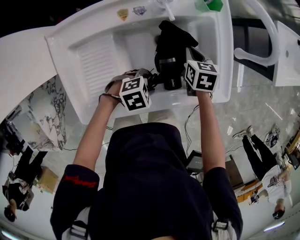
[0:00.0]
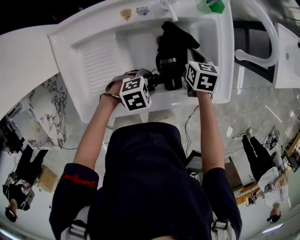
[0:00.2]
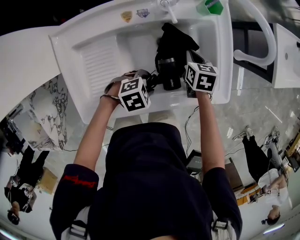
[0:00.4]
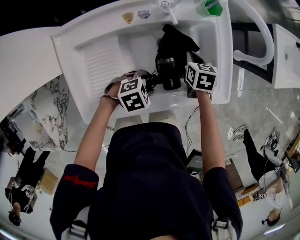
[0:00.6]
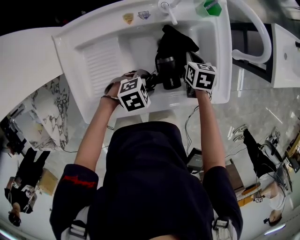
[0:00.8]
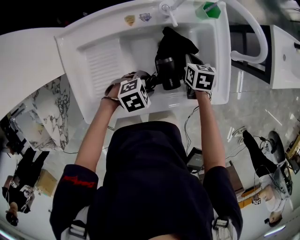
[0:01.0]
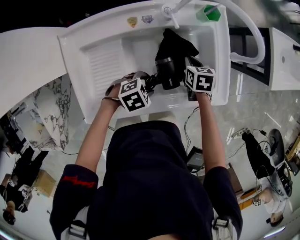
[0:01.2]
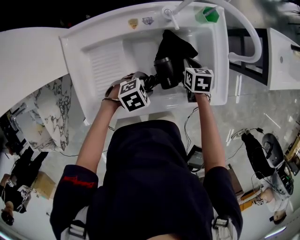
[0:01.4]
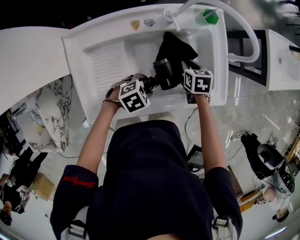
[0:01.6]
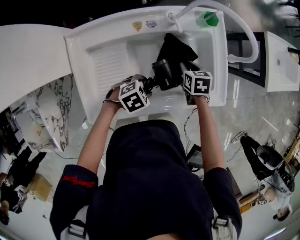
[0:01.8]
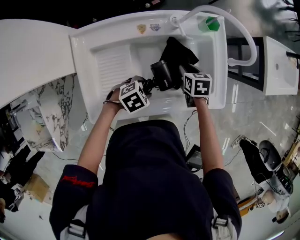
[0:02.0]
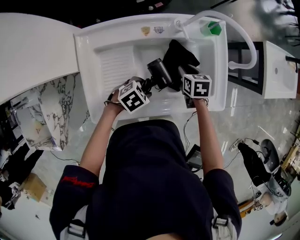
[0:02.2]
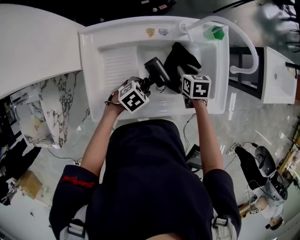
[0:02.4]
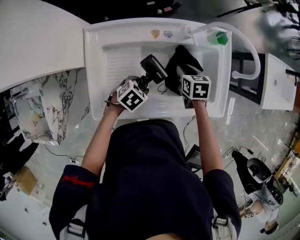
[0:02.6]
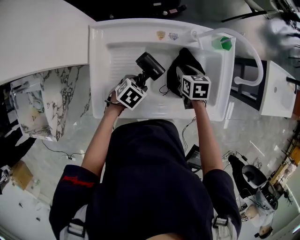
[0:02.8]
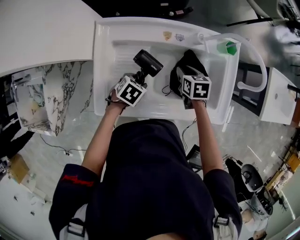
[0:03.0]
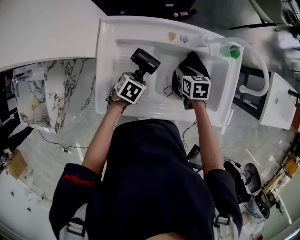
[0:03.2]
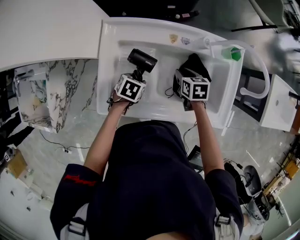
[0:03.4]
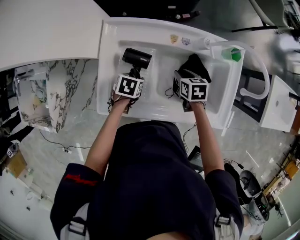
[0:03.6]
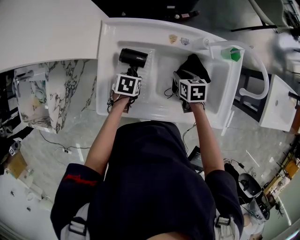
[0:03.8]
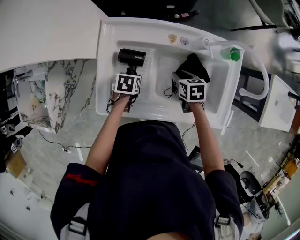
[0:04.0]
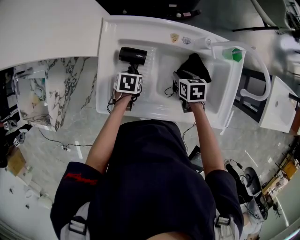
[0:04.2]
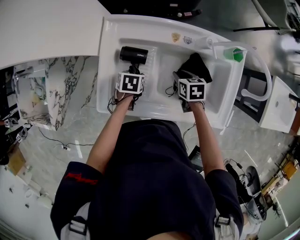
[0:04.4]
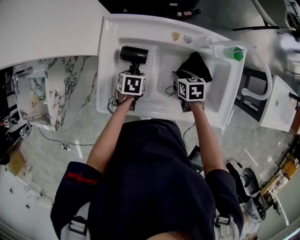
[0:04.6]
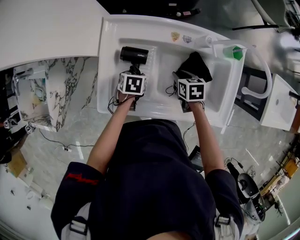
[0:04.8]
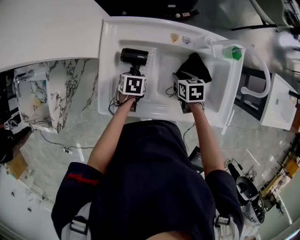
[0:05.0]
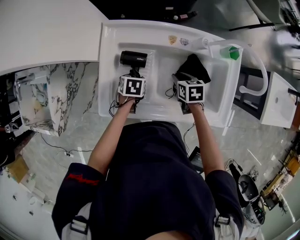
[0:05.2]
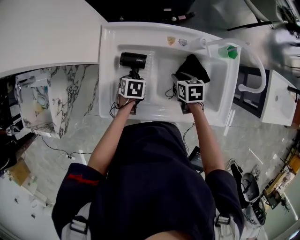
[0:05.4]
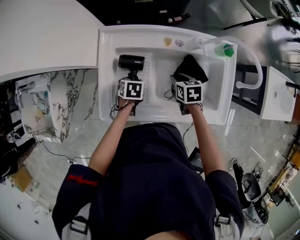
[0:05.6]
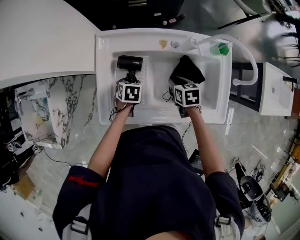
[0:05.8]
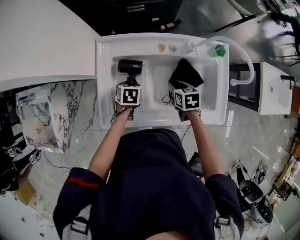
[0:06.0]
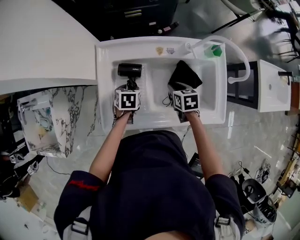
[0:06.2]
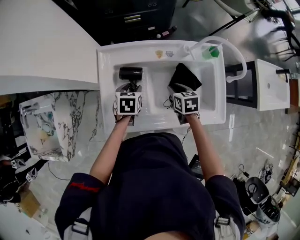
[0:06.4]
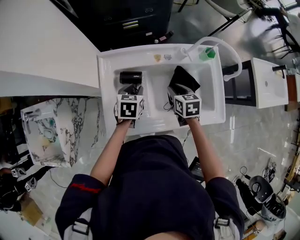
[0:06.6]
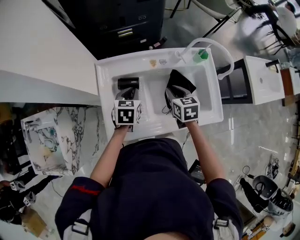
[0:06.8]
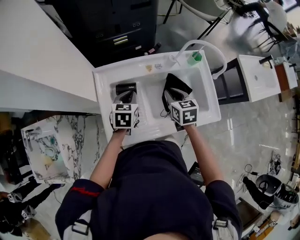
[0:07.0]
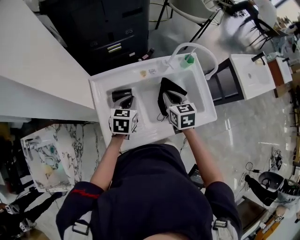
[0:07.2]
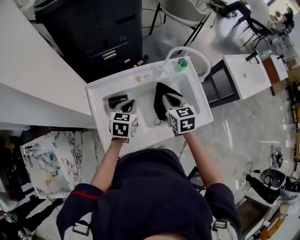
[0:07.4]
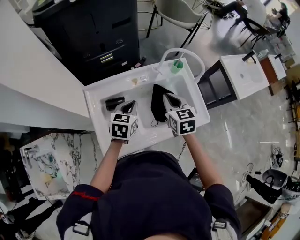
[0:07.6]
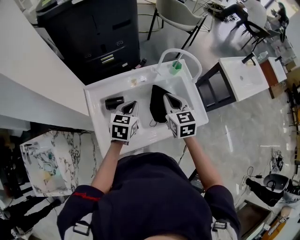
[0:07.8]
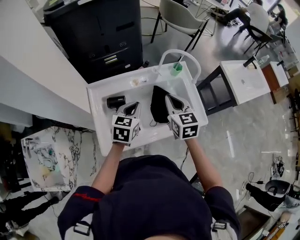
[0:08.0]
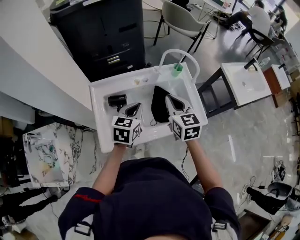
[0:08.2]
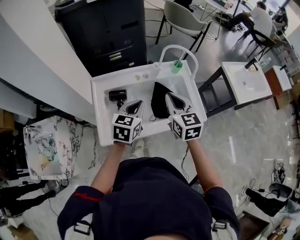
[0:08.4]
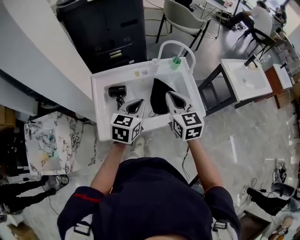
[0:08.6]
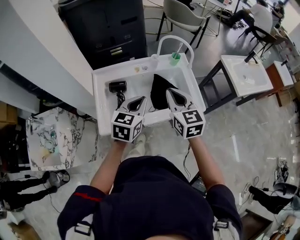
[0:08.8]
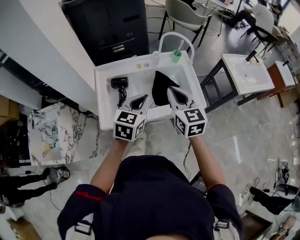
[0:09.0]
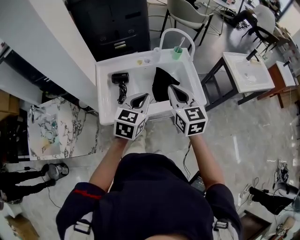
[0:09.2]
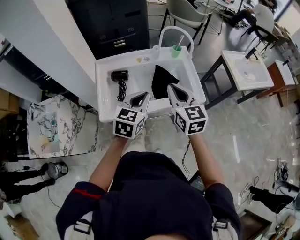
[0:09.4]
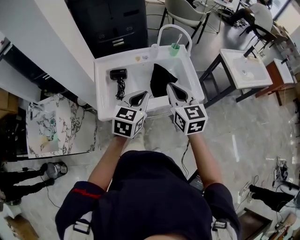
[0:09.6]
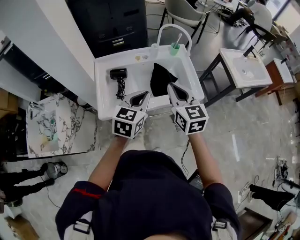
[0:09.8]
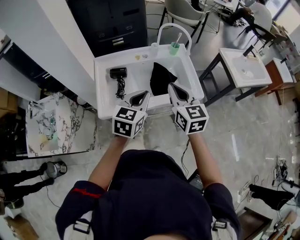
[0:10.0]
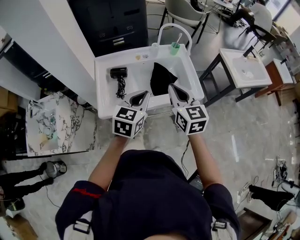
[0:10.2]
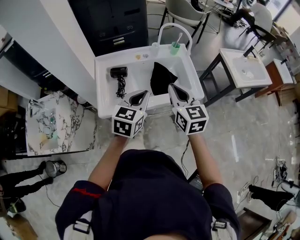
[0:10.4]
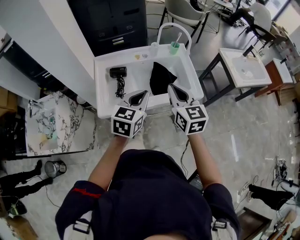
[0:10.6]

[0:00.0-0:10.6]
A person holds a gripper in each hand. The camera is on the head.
0:00.0 to 0:01.6: The left gripper ends up approximately 5 cm from where it was.
0:01.6 to 0:03.0: The left gripper changes place by some 10 cm, and turns by about 40 degrees. The right gripper moves approximately 10 cm.
0:03.0 to 0:04.6: The left gripper moves approximately 5 cm, and changes its angle by roughly 30 degrees. The right gripper ends up some 5 cm from where it was.
0:04.6 to 0:06.0: The grippers move only a little.
0:06.0 to 0:07.6: The left gripper heads upward and to the right, covering about 20 cm, tilts its fingers approximately 40 degrees upward, and closes up. The right gripper goes approximately 20 cm upward, rotates approximately 40 degrees, and closes its fingers.
0:07.6 to 0:09.0: The left gripper goes about 20 cm backward, upward and to the right. Meanwhile the right gripper moves backward and upward, some 20 cm.
0:09.0 to 0:10.6: The two grippers go about 5 cm backward.

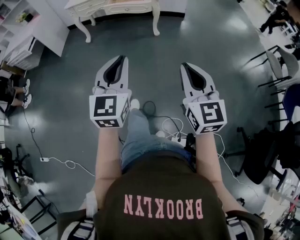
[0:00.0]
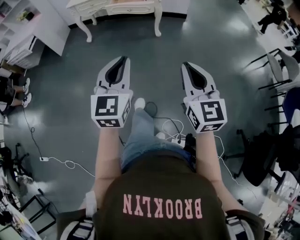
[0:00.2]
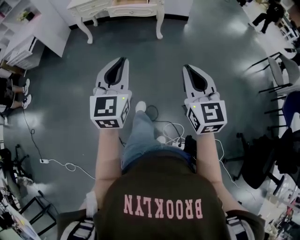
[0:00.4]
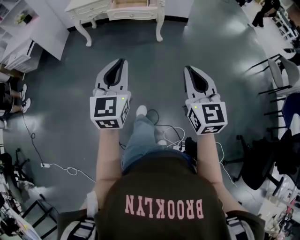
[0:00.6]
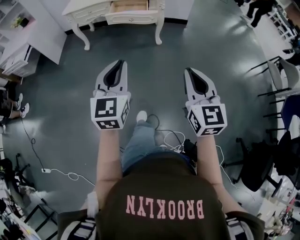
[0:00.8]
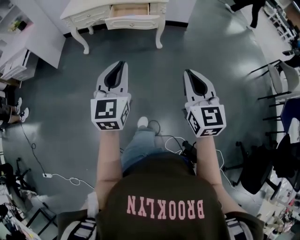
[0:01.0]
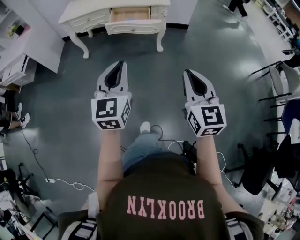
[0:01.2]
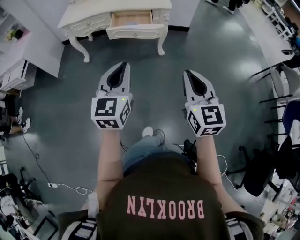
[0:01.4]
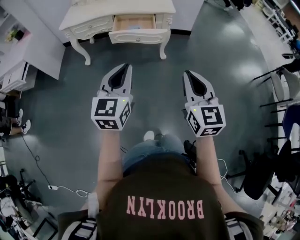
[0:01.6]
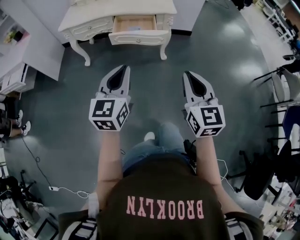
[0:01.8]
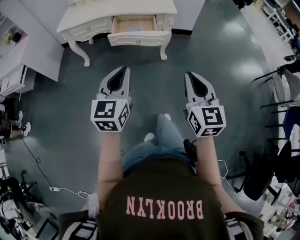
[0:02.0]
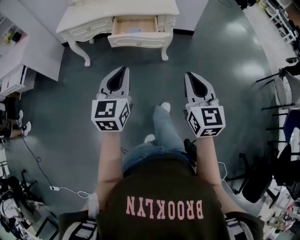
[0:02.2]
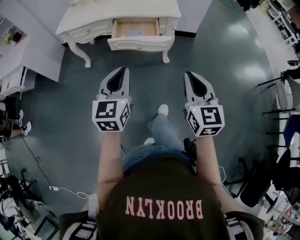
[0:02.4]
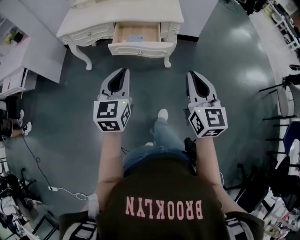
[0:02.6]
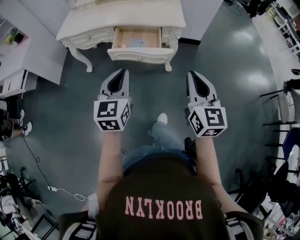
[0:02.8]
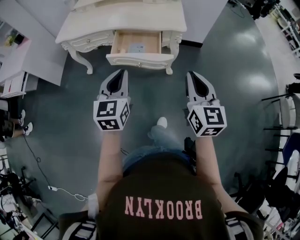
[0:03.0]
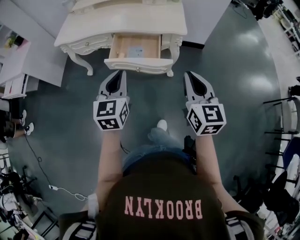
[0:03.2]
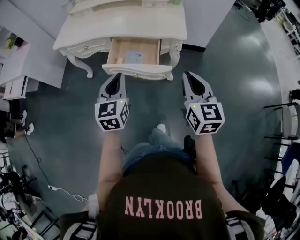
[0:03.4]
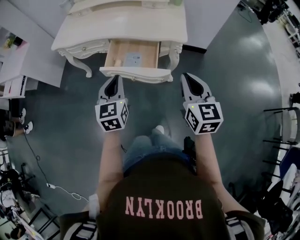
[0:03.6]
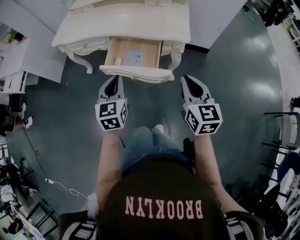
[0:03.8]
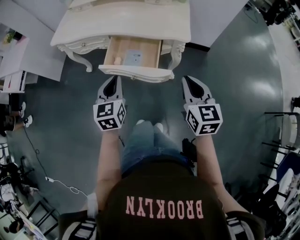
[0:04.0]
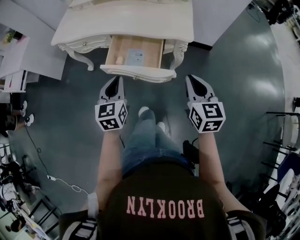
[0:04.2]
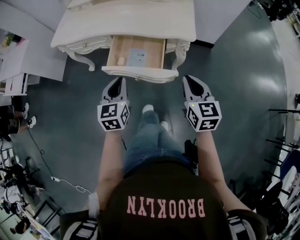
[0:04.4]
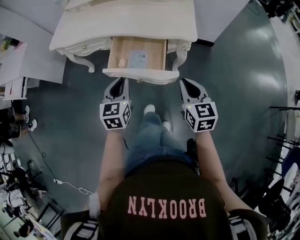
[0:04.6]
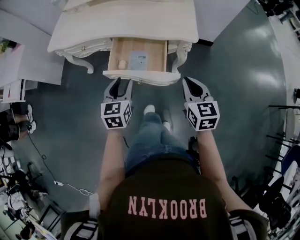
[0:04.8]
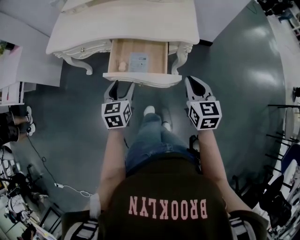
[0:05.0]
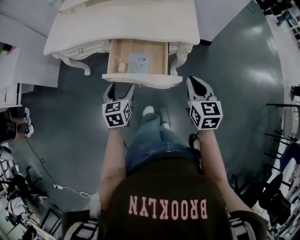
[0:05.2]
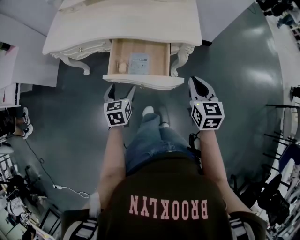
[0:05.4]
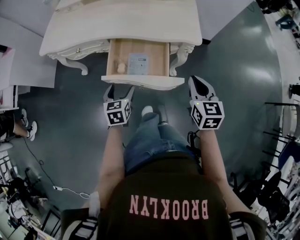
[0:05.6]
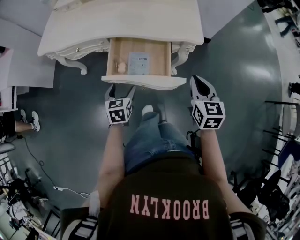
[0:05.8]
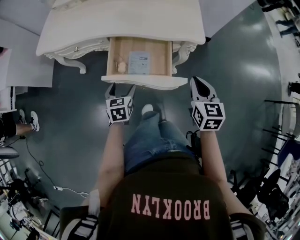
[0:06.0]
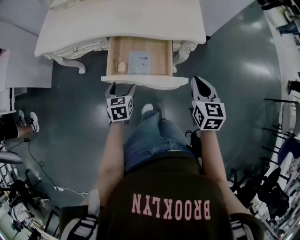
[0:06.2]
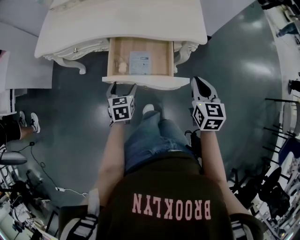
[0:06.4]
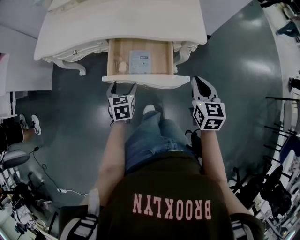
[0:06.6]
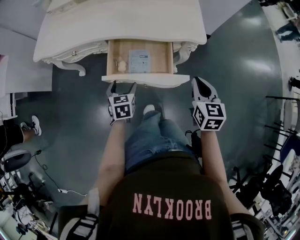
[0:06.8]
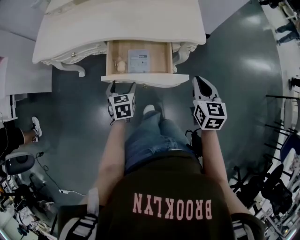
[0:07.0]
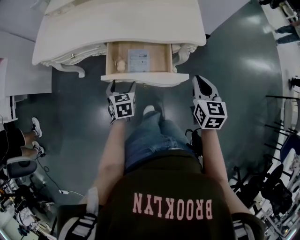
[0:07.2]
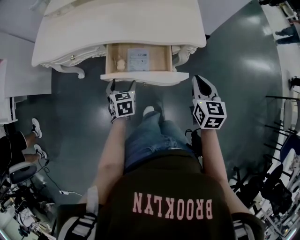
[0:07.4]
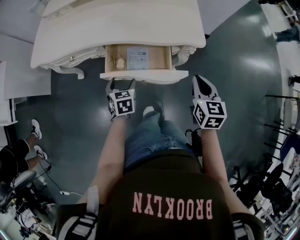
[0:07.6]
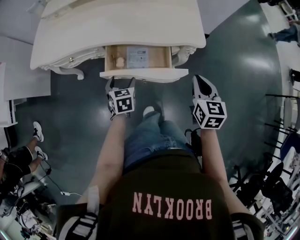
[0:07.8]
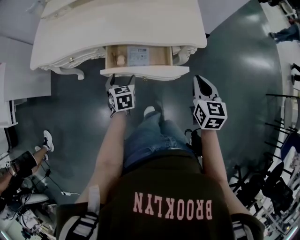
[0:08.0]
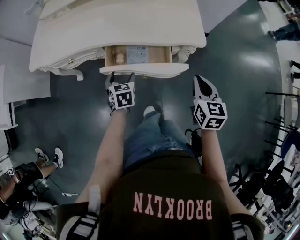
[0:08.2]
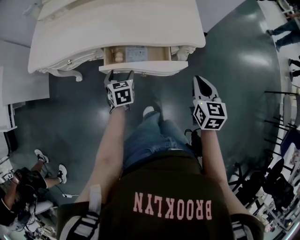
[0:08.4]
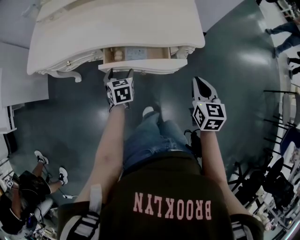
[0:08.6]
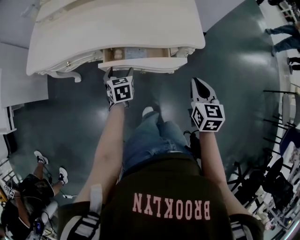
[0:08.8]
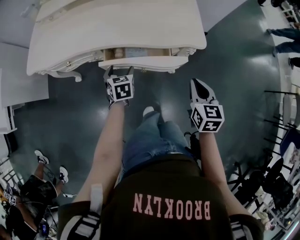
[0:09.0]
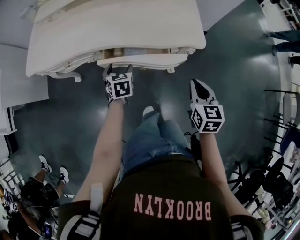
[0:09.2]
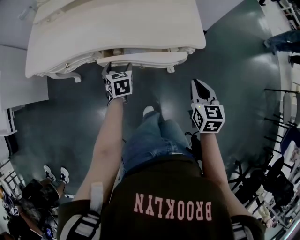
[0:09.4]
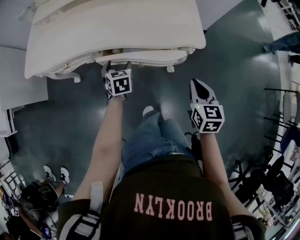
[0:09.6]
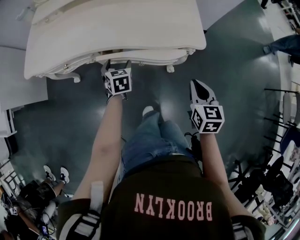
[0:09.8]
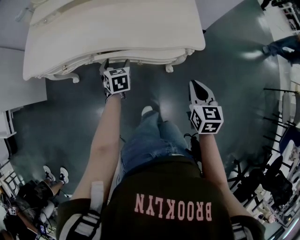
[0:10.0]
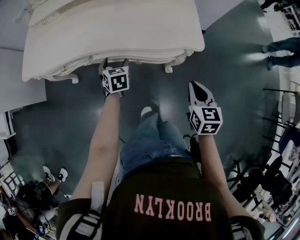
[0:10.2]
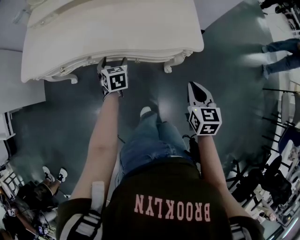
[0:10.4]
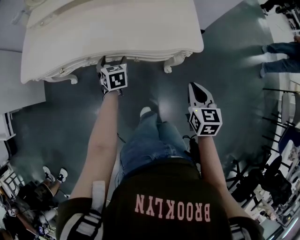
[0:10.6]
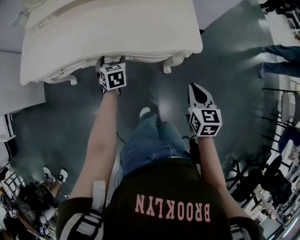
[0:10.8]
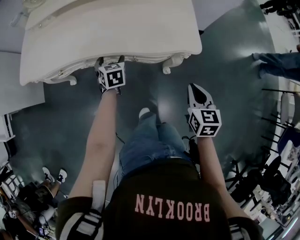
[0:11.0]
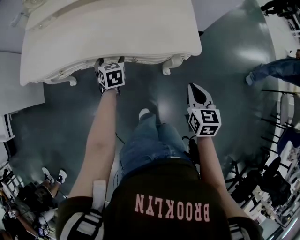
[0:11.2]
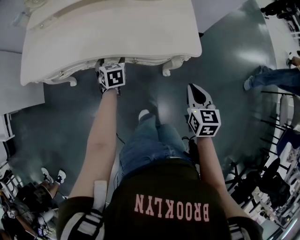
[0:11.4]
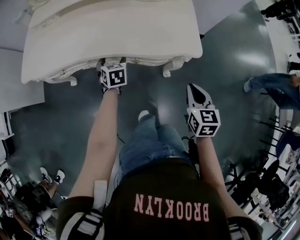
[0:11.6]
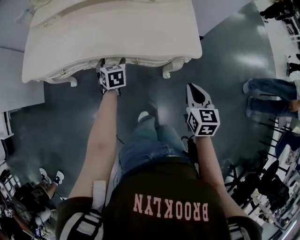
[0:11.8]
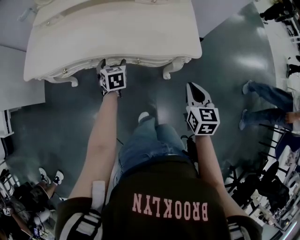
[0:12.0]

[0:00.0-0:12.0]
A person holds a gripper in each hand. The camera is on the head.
0:00.0 to 0:01.6: Both grippers move forward, roughly 35 cm.
0:01.6 to 0:03.0: The two grippers go roughly 25 cm forward.
0:03.0 to 0:04.4: The two grippers go some 20 cm forward and downward.
0:04.4 to 0:06.0: The left gripper is displaced downward by about 15 cm, turns by roughly 20 degrees, and opens its fingers. Meanwhile the right gripper goes approximately 10 cm forward and downward.
0:06.0 to 0:07.6: The left gripper moves forward, approximately 10 cm.
0:07.6 to 0:09.0: The left gripper shifts roughly 10 cm forward.
0:09.0 to 0:10.4: The left gripper travels forward by about 5 cm.
0:10.4 to 0:12.0: The grippers move only a little.

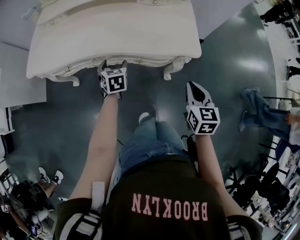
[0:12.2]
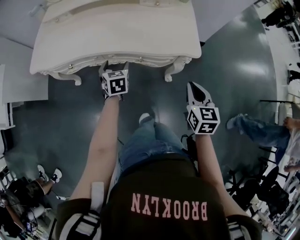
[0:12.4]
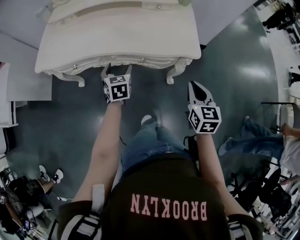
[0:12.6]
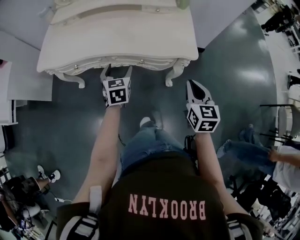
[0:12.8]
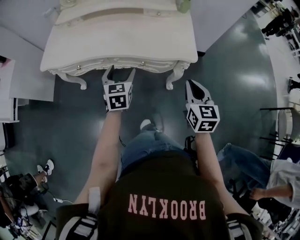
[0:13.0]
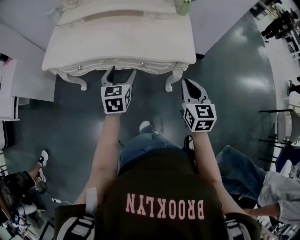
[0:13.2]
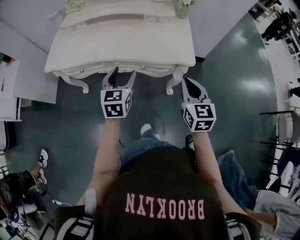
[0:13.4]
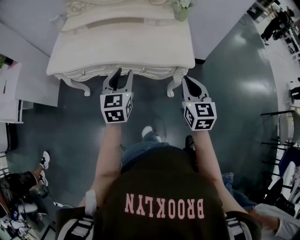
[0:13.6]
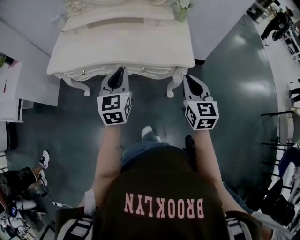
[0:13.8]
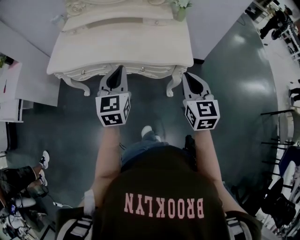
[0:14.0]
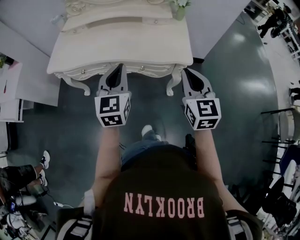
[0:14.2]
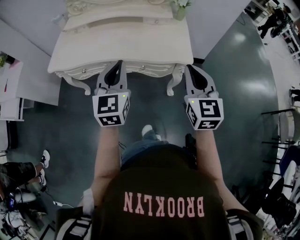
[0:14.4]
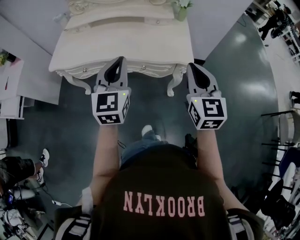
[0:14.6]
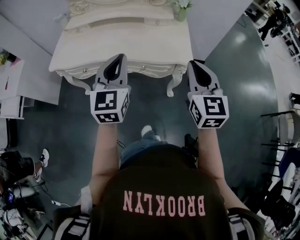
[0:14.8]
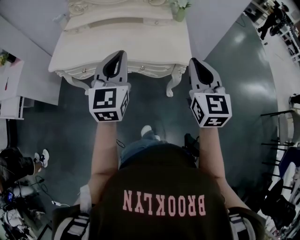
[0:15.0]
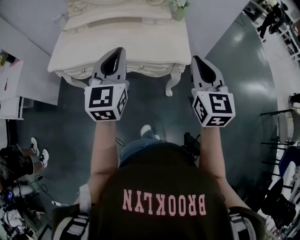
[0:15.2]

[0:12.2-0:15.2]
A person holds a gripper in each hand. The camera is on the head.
0:12.2 to 0:13.8: The left gripper travels upward and backward by approximately 30 cm, swivels approximately 30 degrees, and closes up; the right gripper moves upward, roughly 15 cm.
0:13.8 to 0:15.2: The two grippers go roughly 10 cm upward.
